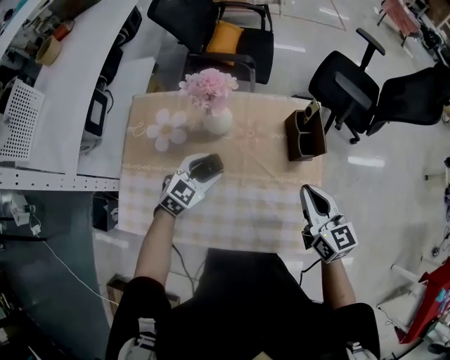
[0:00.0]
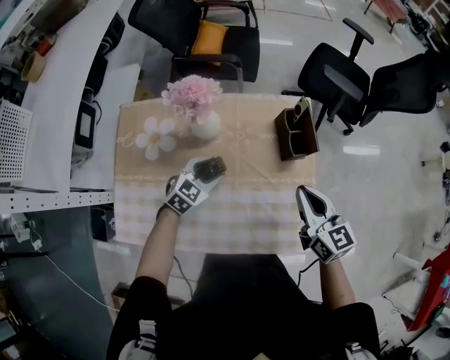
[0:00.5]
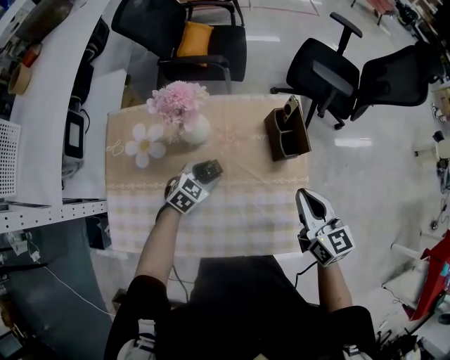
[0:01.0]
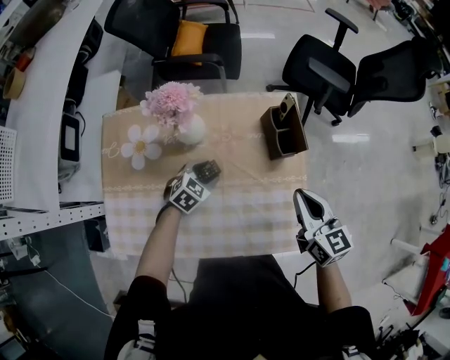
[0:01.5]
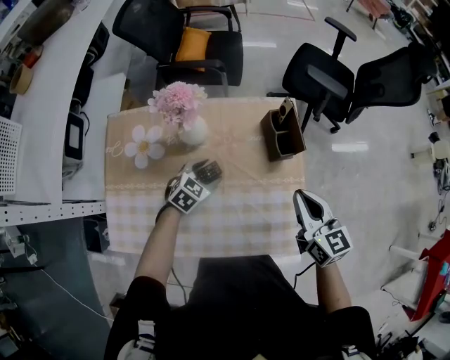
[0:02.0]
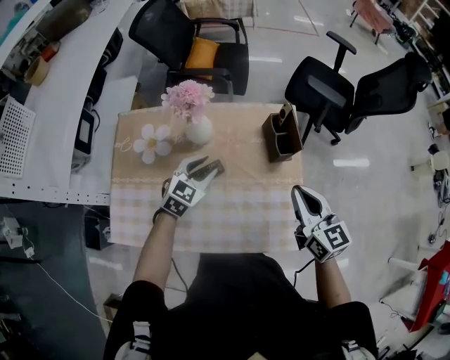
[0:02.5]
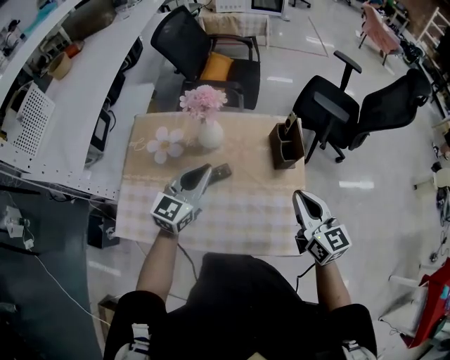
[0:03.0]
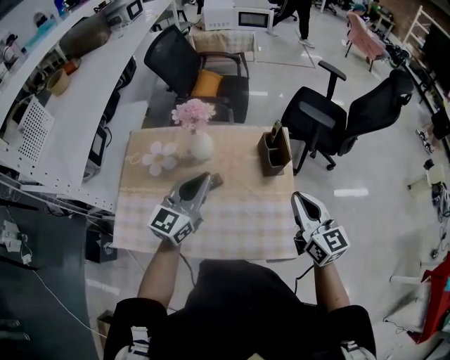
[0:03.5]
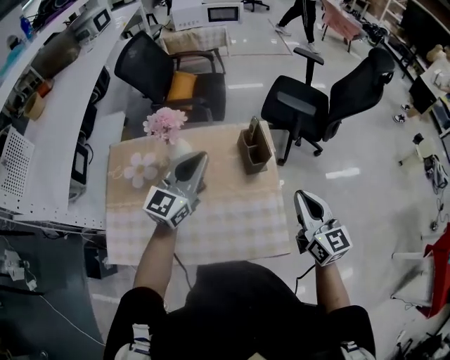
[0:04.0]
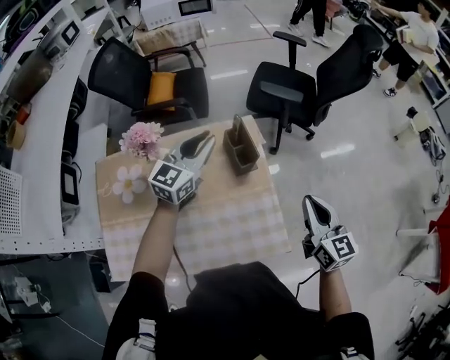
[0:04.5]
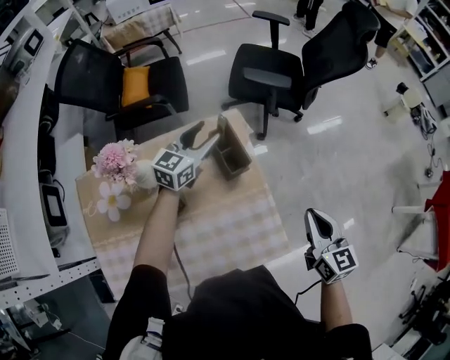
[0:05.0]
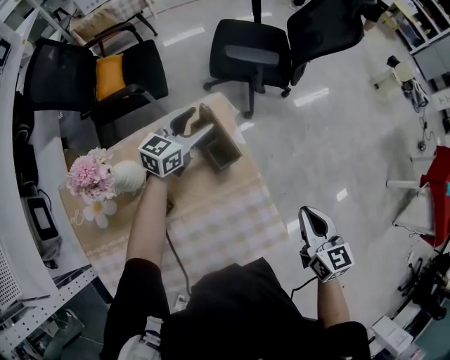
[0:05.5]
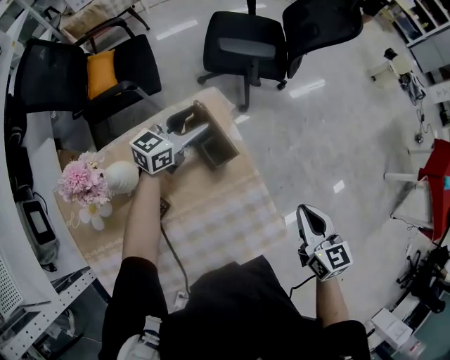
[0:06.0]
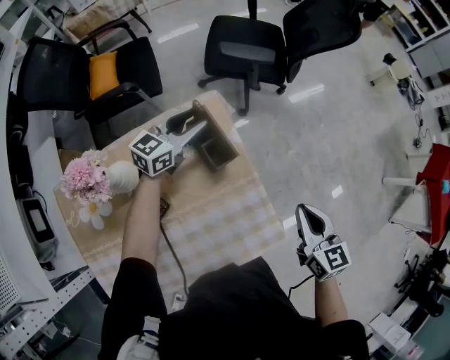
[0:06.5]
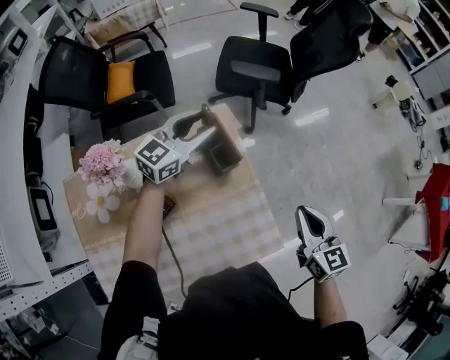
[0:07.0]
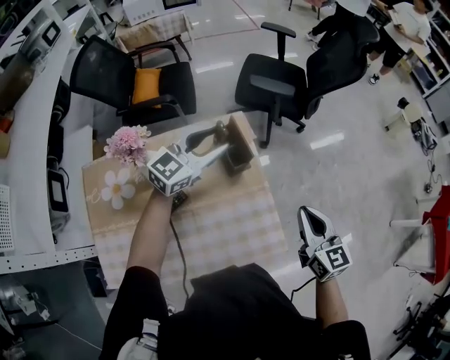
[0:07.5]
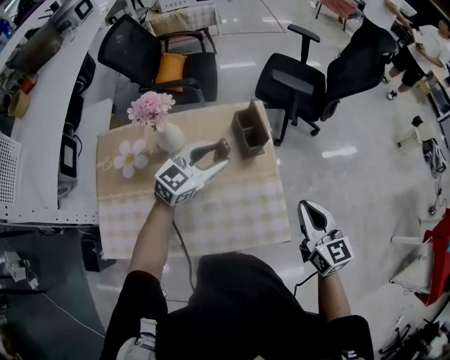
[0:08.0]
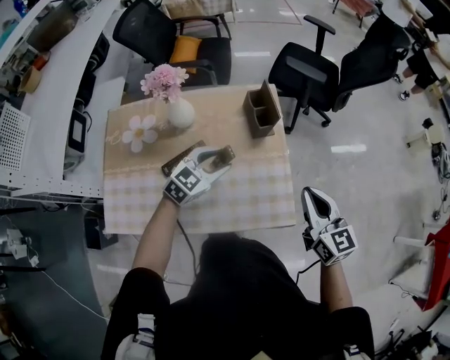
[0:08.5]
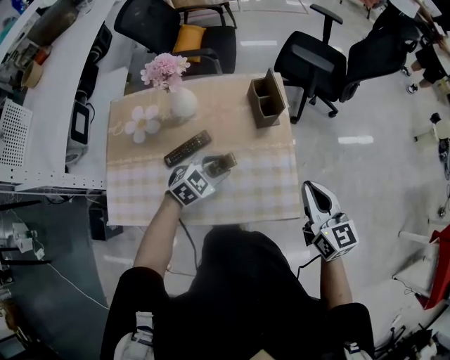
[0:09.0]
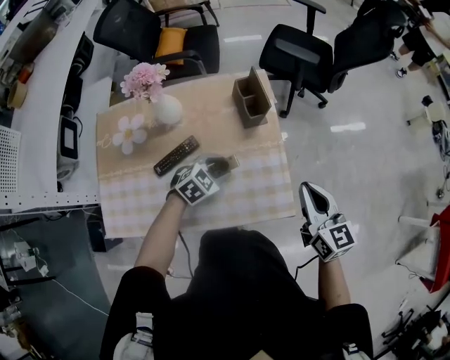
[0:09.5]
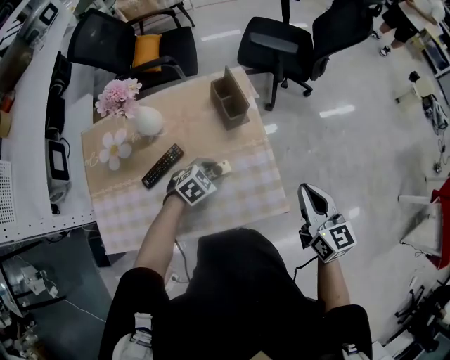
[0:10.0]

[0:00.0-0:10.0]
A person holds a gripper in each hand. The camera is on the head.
0.0 to 2.0 s: The left gripper goes some 5 cm downward.
2.0 to 4.0 s: The right gripper moves upward, to the right and backward, about 15 cm, while the left gripper is displaced upward by about 30 cm, tilts its fingers roughly 50 degrees upward, and closes up.
4.0 to 6.0 s: The left gripper shifts by approximately 35 cm, changes its angle by about 40 degrees, and opens. The right gripper moves downward, approximately 15 cm, and turns by about 30 degrees.
6.0 to 8.0 s: The left gripper is displaced backward and upward by about 25 cm, and swivels approximately 20 degrees, while the right gripper goes about 10 cm upward and backward, and swivels approximately 20 degrees.
8.0 to 10.0 s: The right gripper goes approximately 5 cm to the right; the left gripper moves downward, roughly 20 cm, and angles its fingers downward, by about 40 degrees.

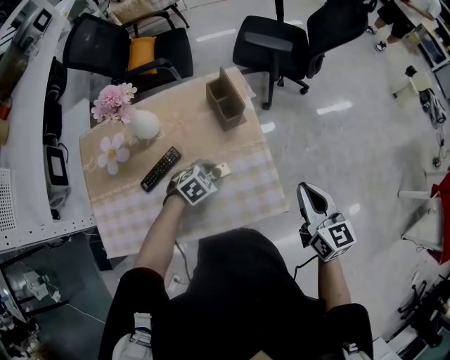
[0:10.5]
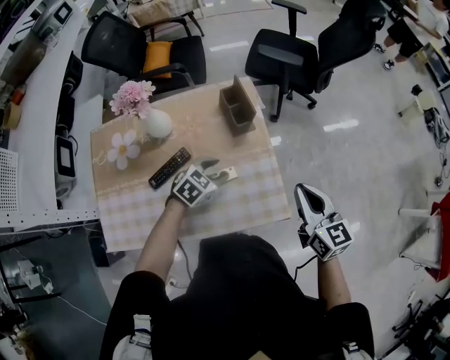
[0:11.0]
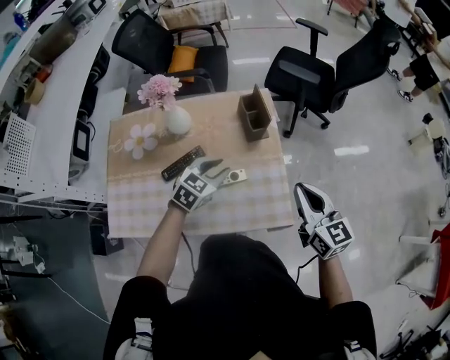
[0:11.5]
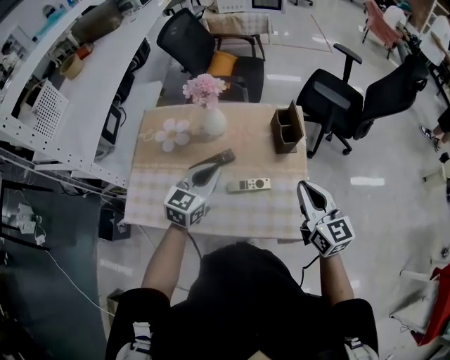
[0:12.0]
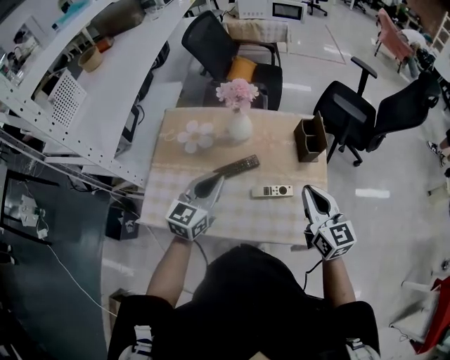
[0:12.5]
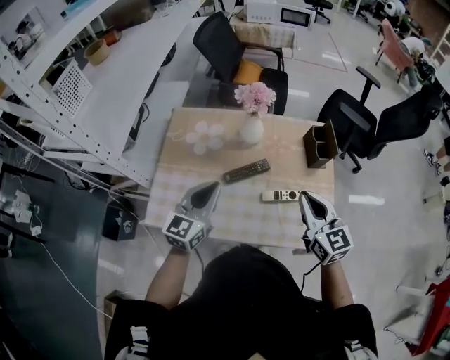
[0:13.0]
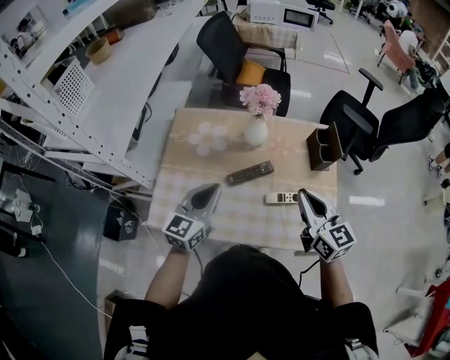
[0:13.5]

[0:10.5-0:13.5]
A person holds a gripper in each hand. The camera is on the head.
10.5 to 12.0 s: The right gripper changes place by about 15 cm, and rotates about 20 degrees, while the left gripper heads upward, covering about 25 cm, tips its fingers upward by roughly 40 degrees, and closes.
12.0 to 13.5 s: The two grippers go approximately 15 cm to the left.

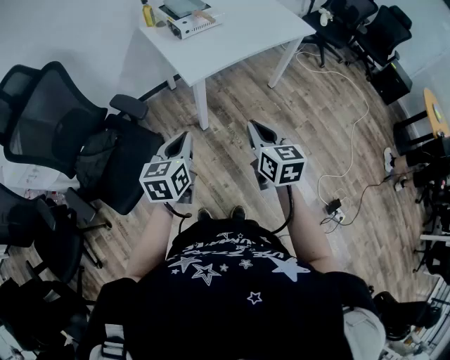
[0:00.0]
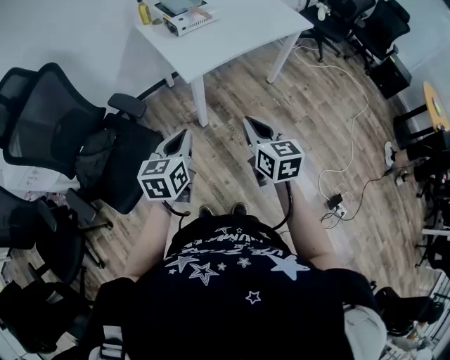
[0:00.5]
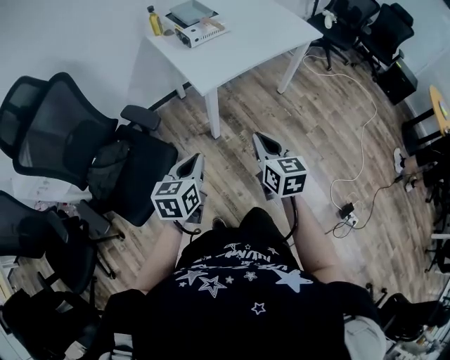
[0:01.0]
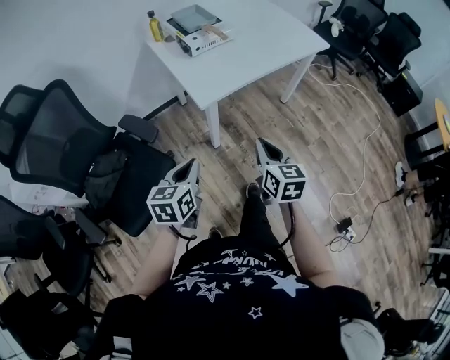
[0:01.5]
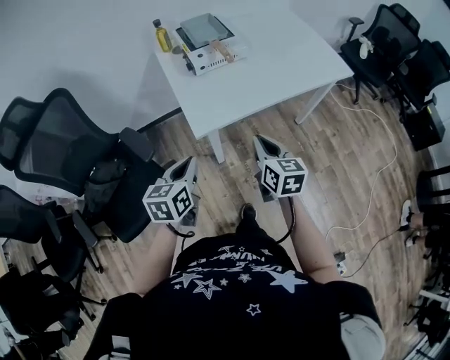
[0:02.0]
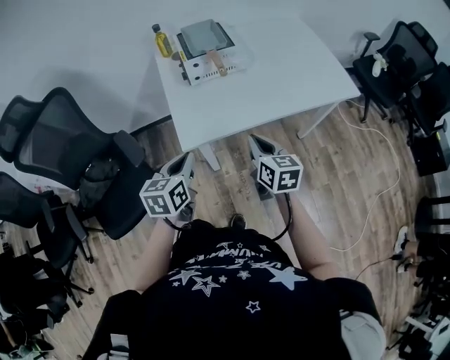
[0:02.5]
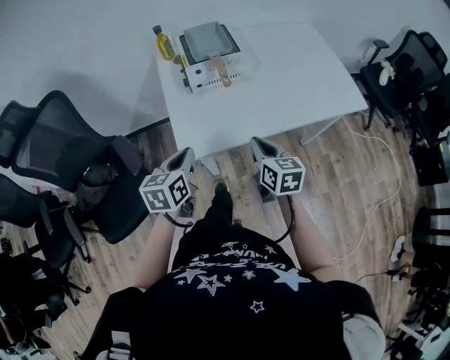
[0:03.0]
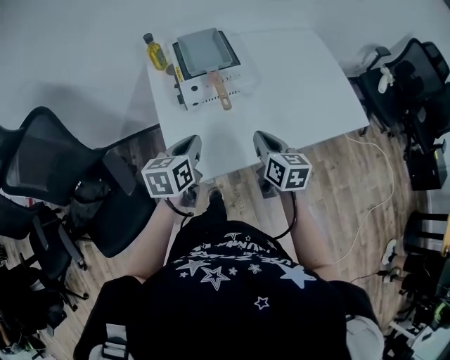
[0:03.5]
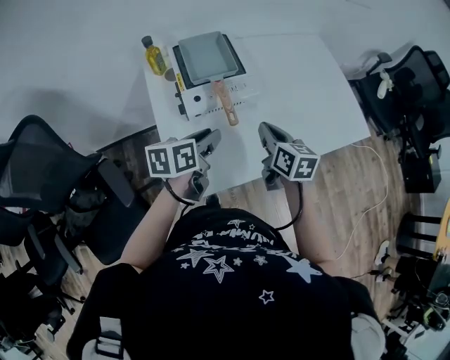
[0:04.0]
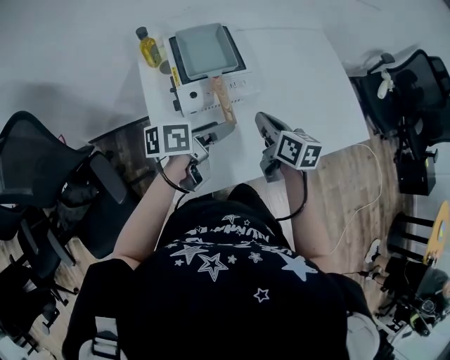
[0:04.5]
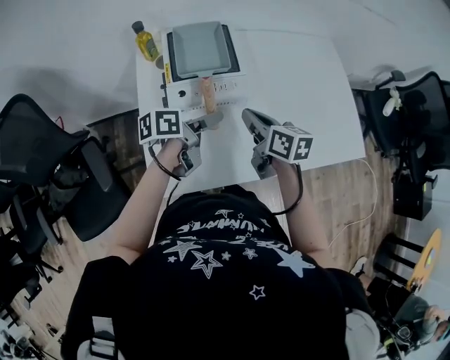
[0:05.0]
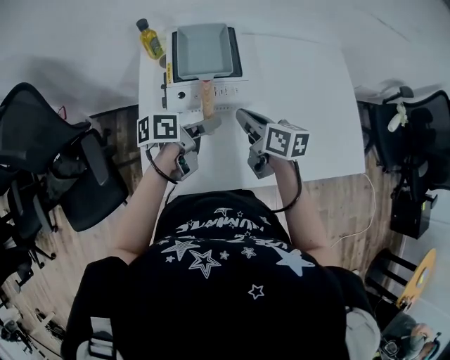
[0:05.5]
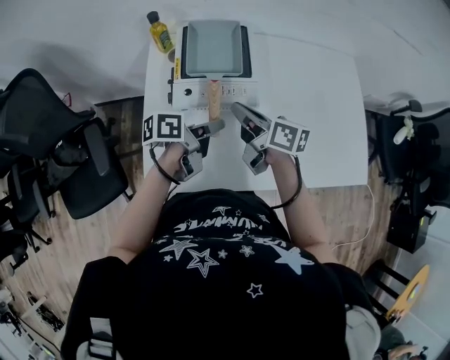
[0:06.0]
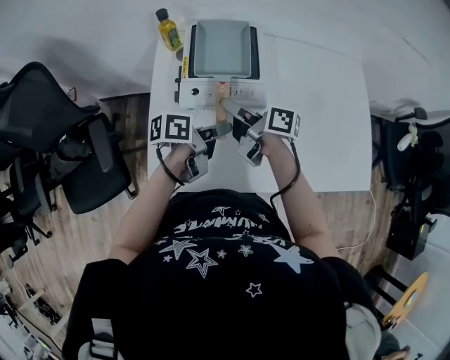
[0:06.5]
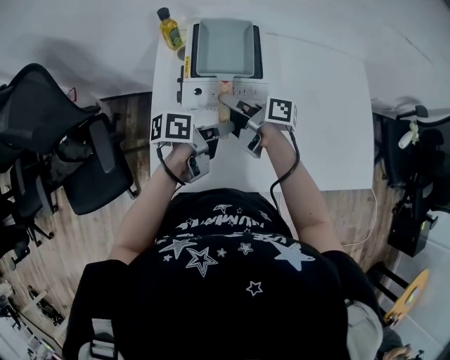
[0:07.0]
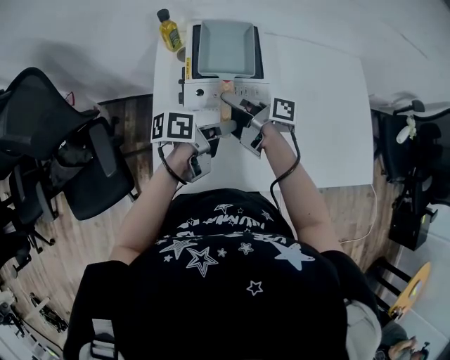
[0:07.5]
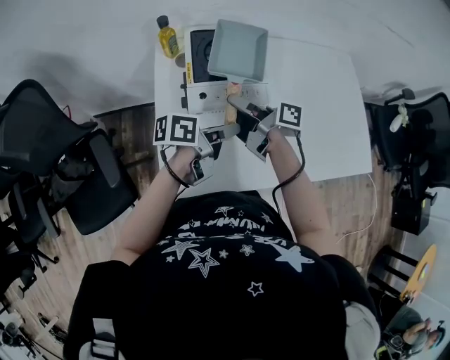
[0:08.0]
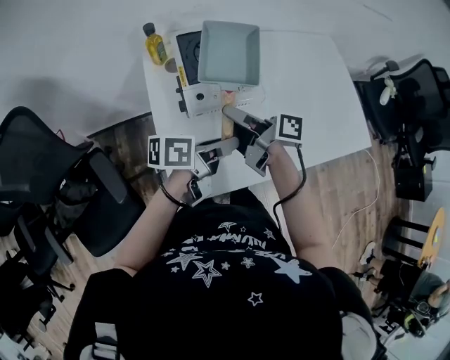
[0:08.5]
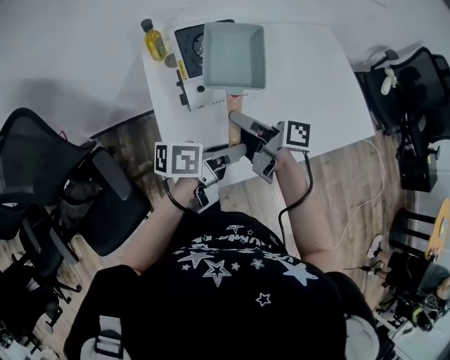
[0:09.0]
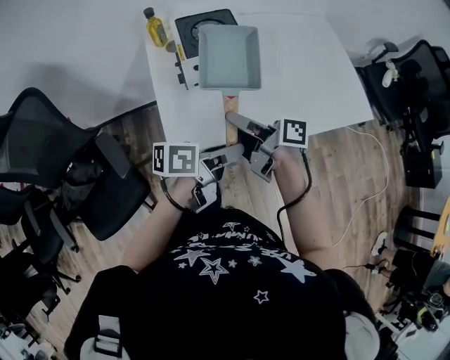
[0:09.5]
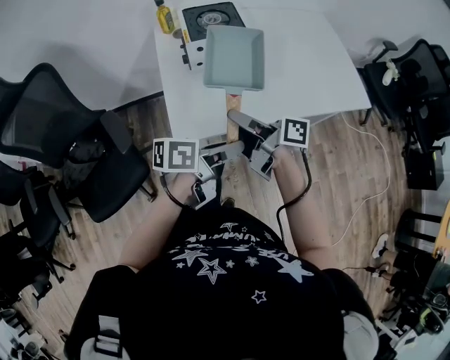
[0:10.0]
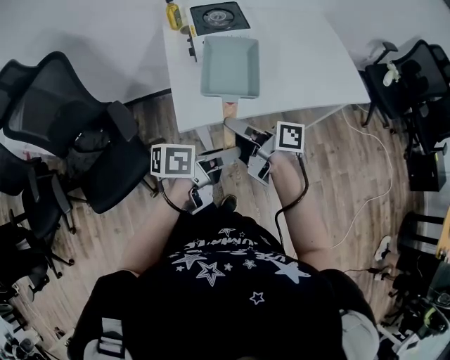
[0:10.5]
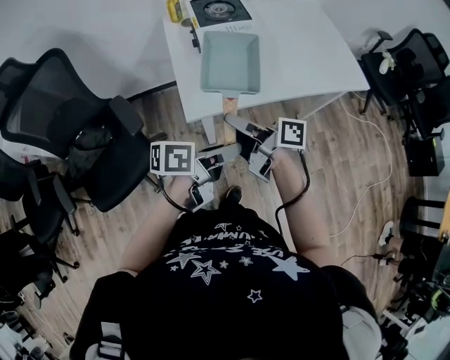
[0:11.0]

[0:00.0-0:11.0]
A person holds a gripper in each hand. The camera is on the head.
0.0 to 2.0 s: The two grippers go roughly 20 cm forward.
2.0 to 3.5 s: Both grippers travel together forward, approximately 25 cm.
3.5 to 5.5 s: The left gripper travels forward and to the right by about 15 cm, rotates some 40 degrees, and opens its fingers, while the right gripper shifts about 15 cm forward, and swivels about 30 degrees.
5.5 to 7.5 s: The left gripper closes, while the right gripper moves to the left, approximately 10 cm, changes its angle by roughly 50 degrees, and opens up.
7.5 to 9.0 s: The left gripper heads backward, covering some 10 cm. Meanwhile the right gripper heads backward and upward, covering roughly 10 cm.
9.0 to 11.0 s: The two grippers go some 30 cm backward.

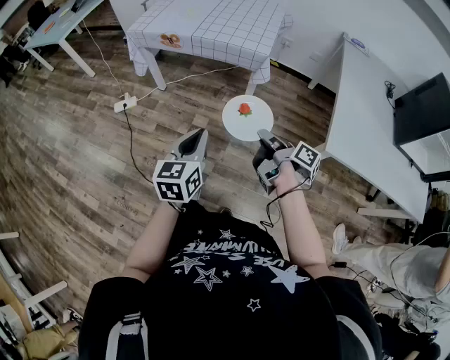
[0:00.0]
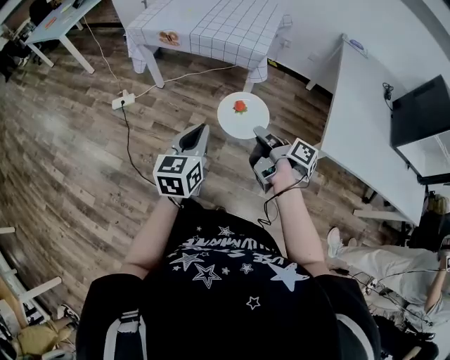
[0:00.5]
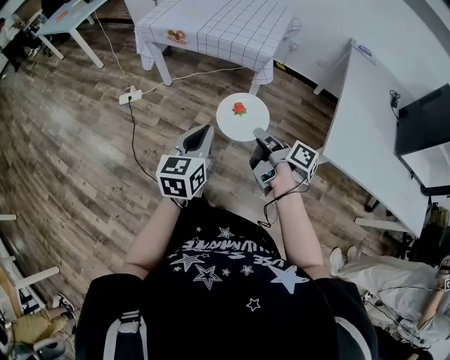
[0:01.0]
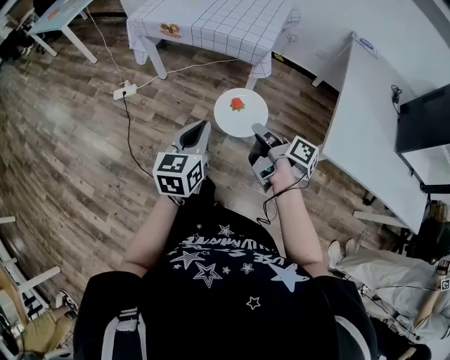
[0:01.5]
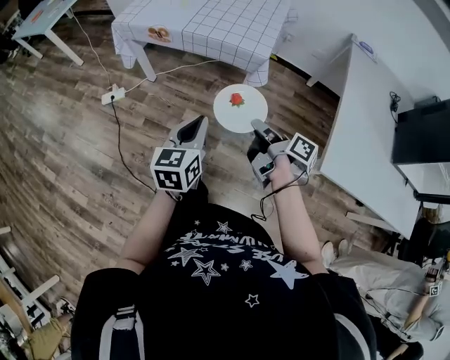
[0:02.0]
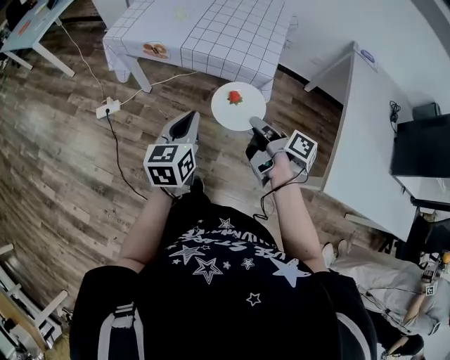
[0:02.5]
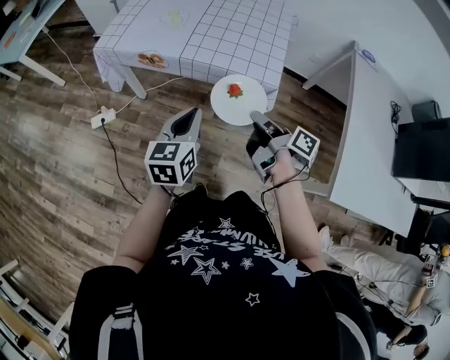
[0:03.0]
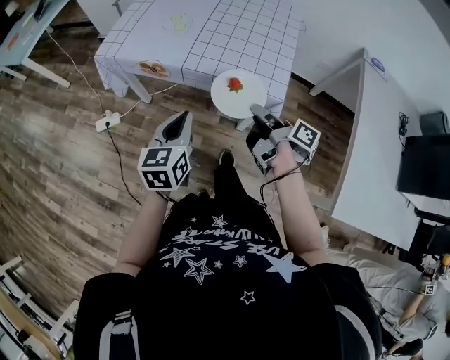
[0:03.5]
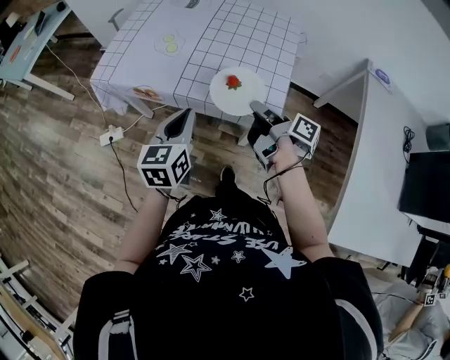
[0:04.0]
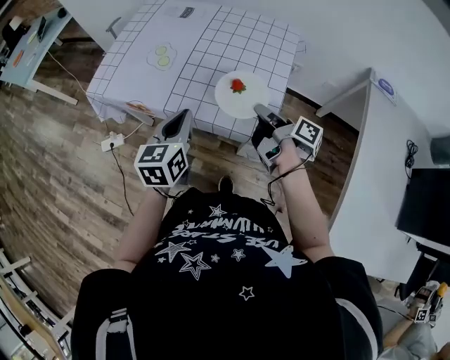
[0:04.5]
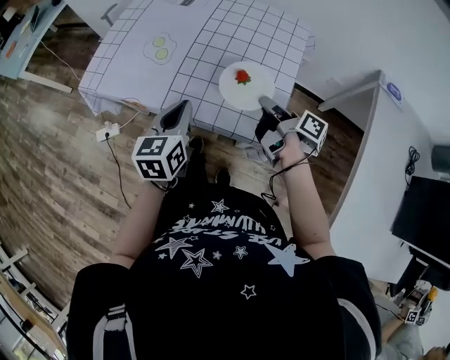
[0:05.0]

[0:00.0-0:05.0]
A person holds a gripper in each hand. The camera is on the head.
0.0 to 2.5 s: The left gripper changes place by roughly 25 cm.
2.5 to 5.0 s: The left gripper shifts by approximately 30 cm.
